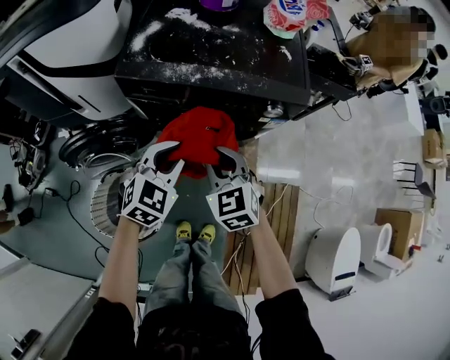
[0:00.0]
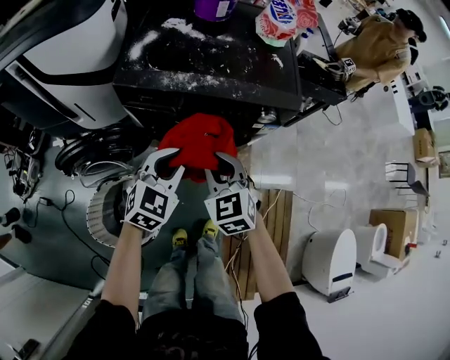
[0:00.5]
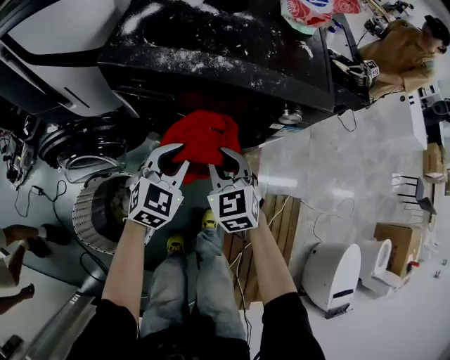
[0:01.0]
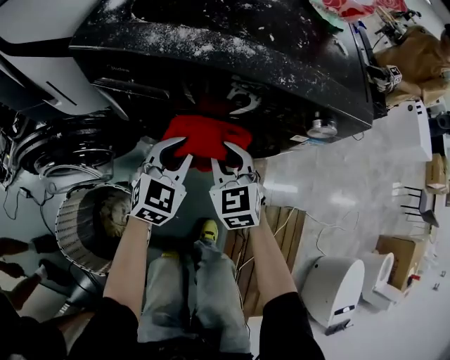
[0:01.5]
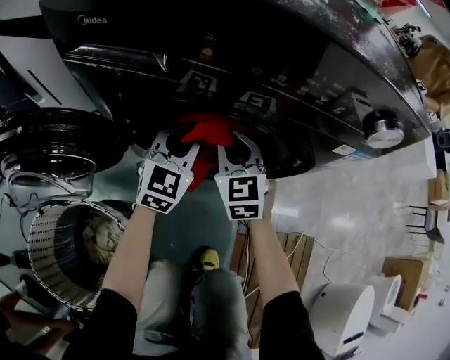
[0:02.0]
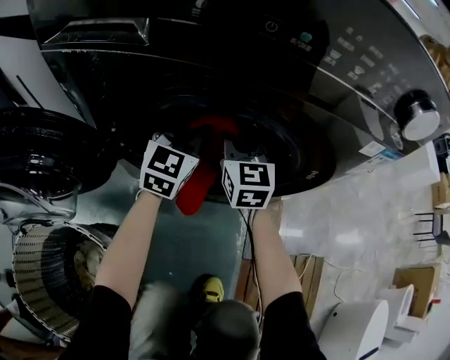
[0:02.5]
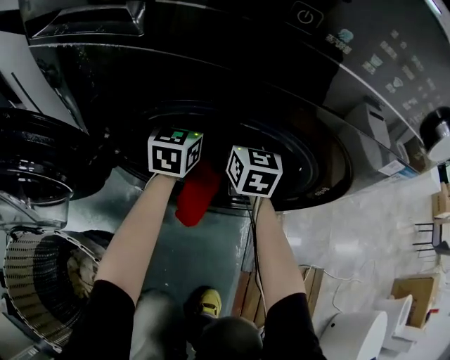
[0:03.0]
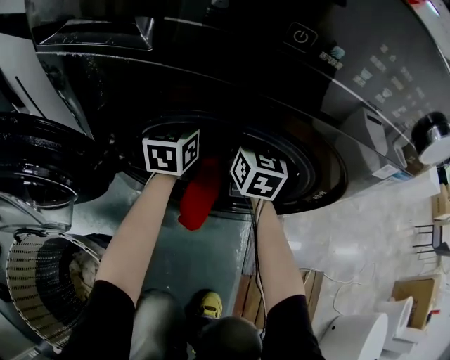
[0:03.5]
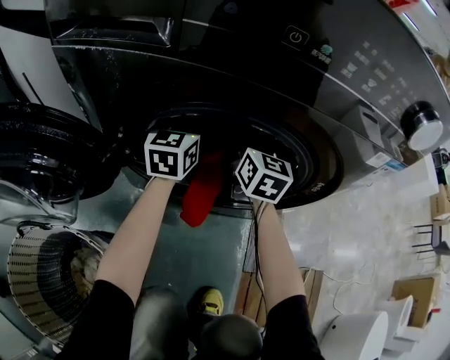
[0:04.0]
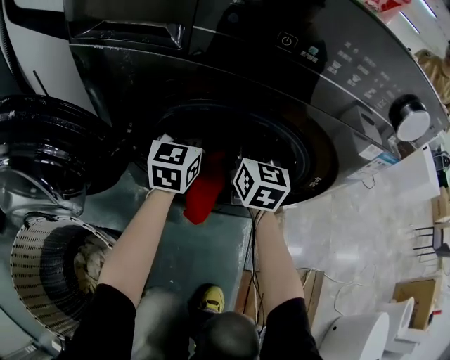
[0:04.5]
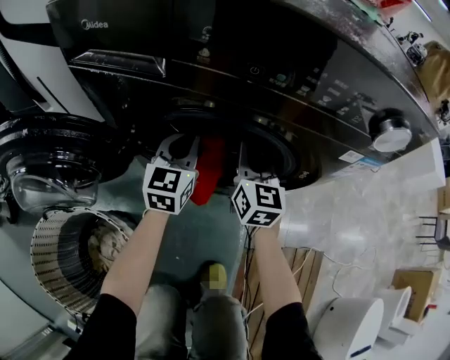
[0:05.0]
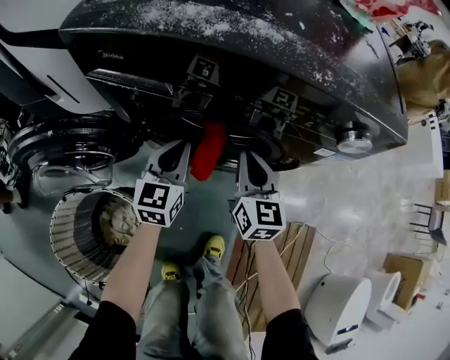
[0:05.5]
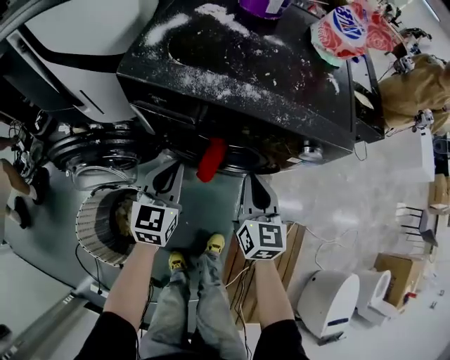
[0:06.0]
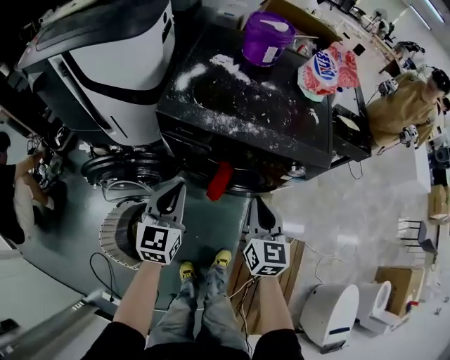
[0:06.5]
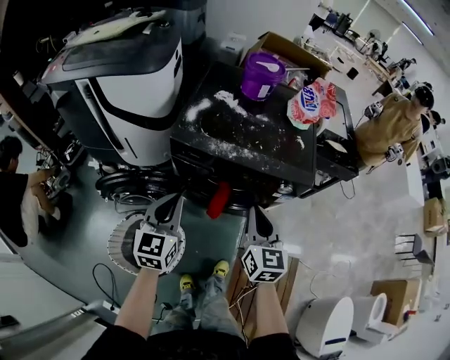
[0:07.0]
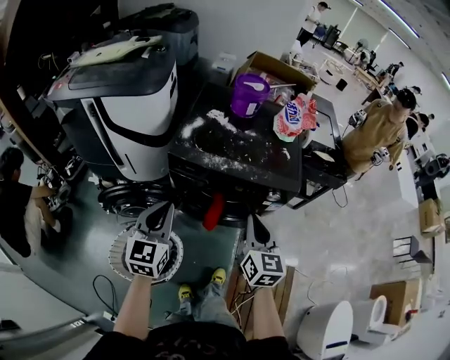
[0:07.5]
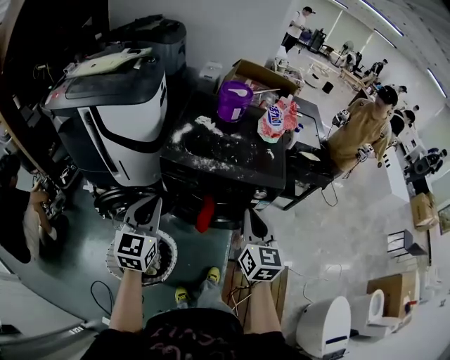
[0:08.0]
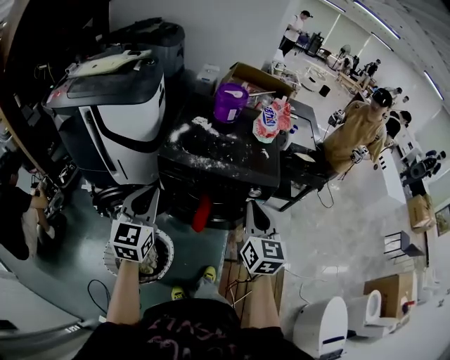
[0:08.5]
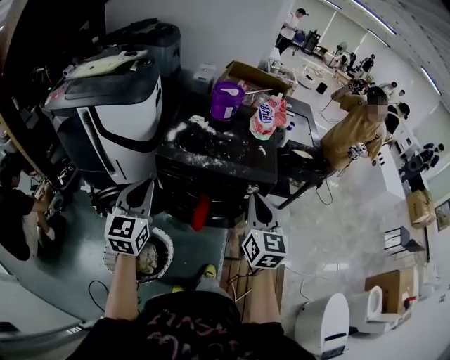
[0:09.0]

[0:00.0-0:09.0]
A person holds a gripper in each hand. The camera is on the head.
0:00.0 to 0:02.0: Both grippers travel together downward and forward, approximately 40 cm. The left gripper changes its angle by about 30 degrees.
0:02.0 to 0:04.5: Both grippers travel together forward, some 10 cm. The left gripper rotates some 20 degrees. The right gripper swivels some 20 degrees, and opens, then closes again.
0:04.5 to 0:07.0: Both grippers travel together upward and backward, roughly 50 cm.
0:07.0 to 0:09.0: Both grippers move upward, some 15 cm.

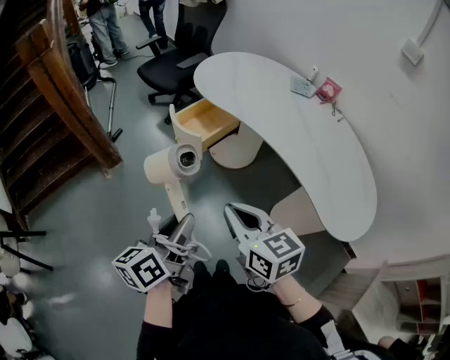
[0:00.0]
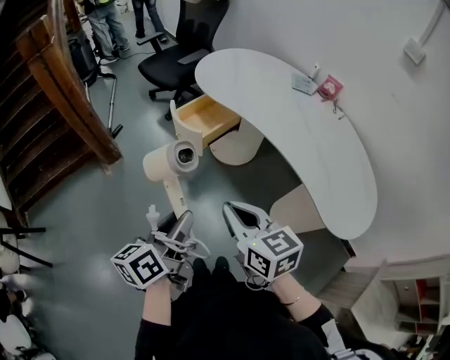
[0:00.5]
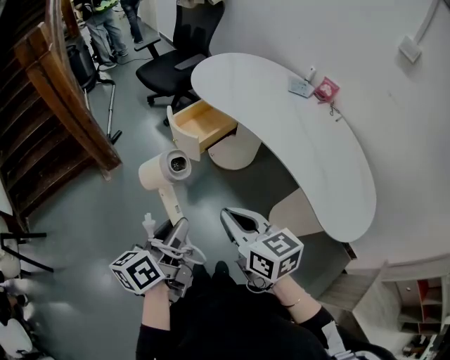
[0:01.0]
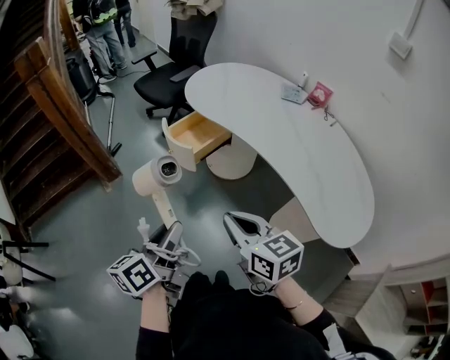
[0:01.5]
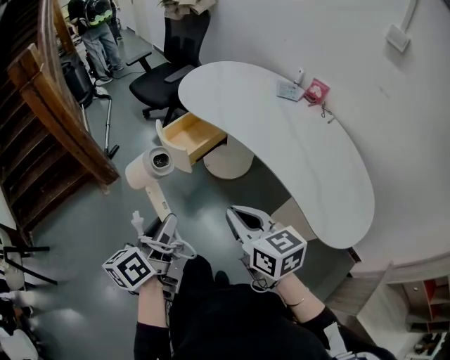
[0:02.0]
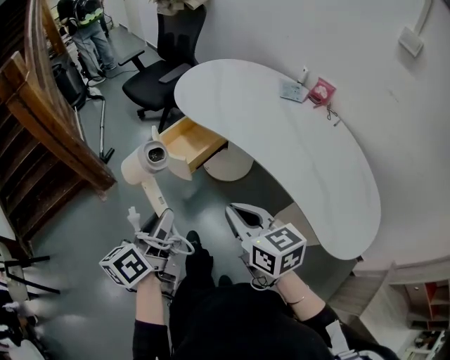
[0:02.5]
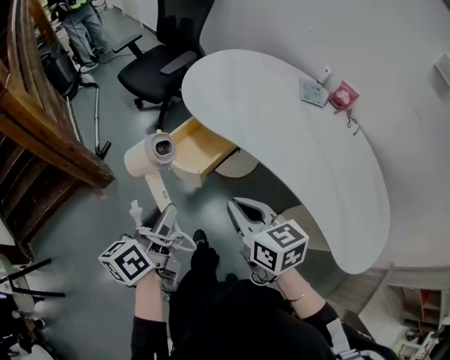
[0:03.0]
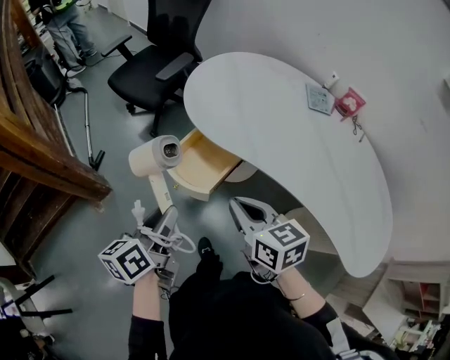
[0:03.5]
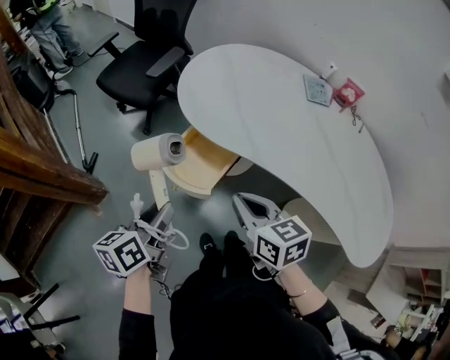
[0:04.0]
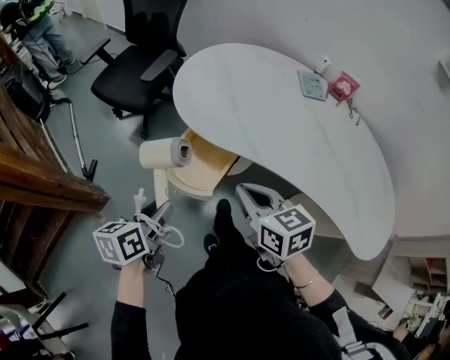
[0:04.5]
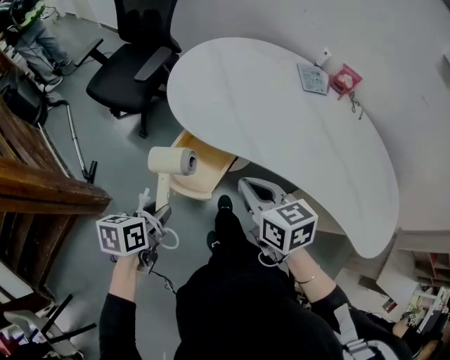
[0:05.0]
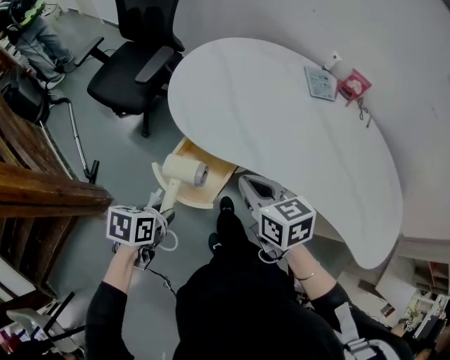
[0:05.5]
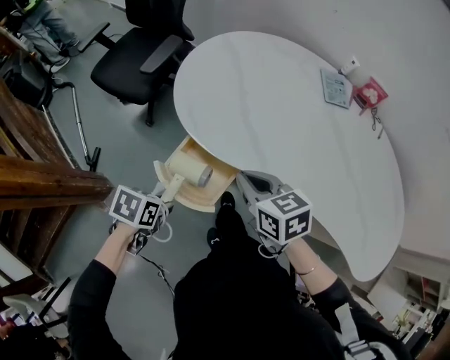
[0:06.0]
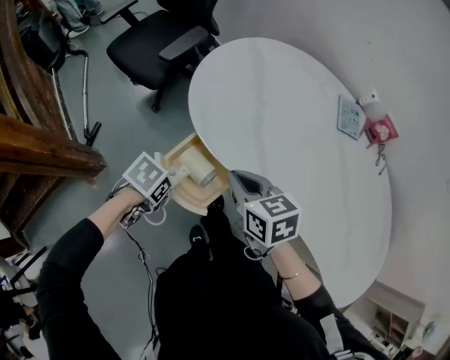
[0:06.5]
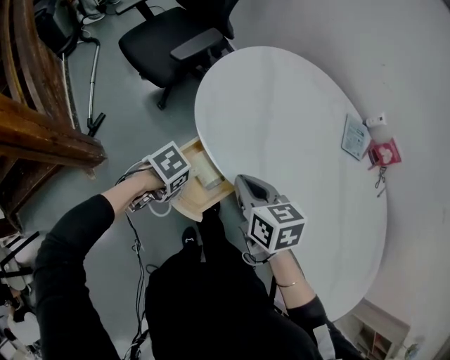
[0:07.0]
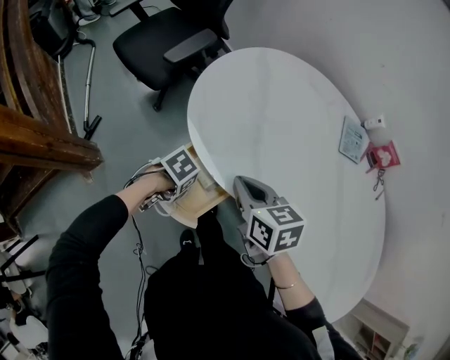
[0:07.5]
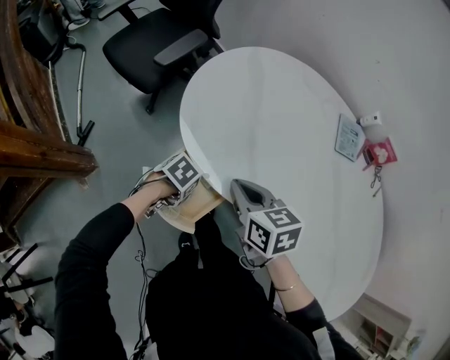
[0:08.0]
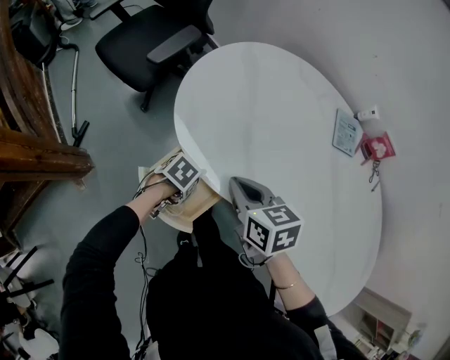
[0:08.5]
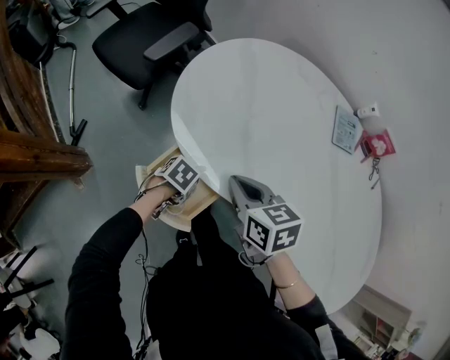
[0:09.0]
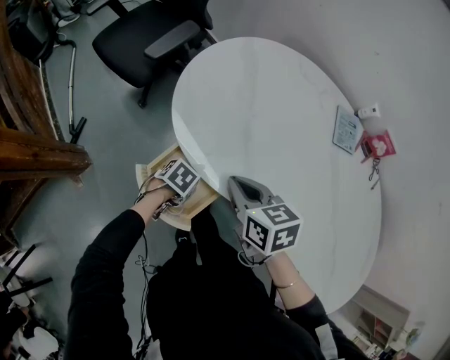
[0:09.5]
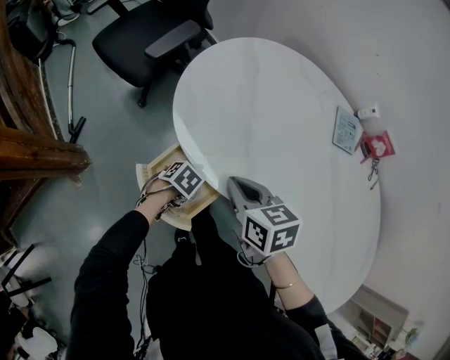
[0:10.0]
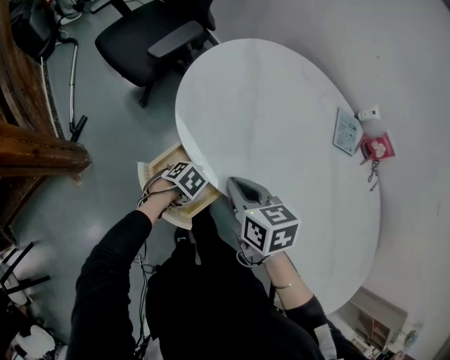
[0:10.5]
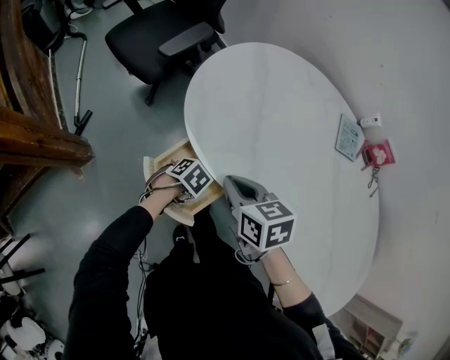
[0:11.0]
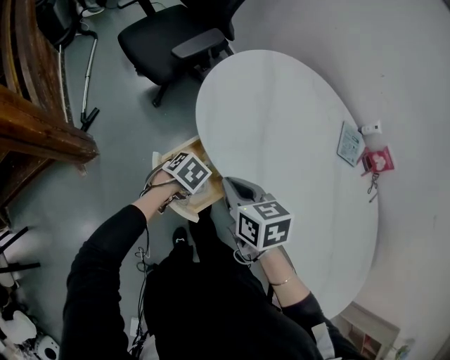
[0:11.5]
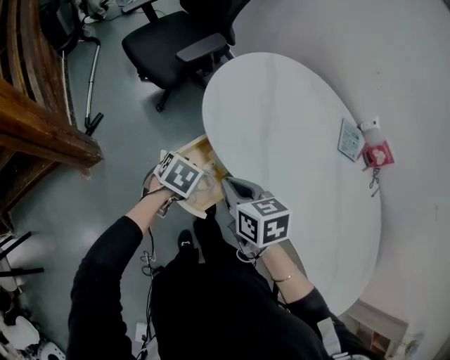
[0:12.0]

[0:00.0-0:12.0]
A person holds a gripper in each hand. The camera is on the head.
0:00.0 to 0:02.0: The right gripper goes roughly 5 cm to the right.
0:02.0 to 0:04.0: Both grippers travel together forward, approximately 30 cm. The left gripper rotates approximately 20 degrees.
0:04.0 to 0:06.0: The left gripper heads downward and forward, covering about 15 cm, and points its fingers about 40 degrees further downward. Meanwhile the right gripper goes some 15 cm forward.
0:06.0 to 0:08.0: The right gripper shifts by some 5 cm; the left gripper changes place by about 15 cm.
0:08.0 to 0:10.0: The left gripper heads downward, covering about 5 cm.
0:10.0 to 0:12.0: The left gripper goes roughly 10 cm upward, and changes its angle by some 30 degrees, while the right gripper moves about 10 cm.

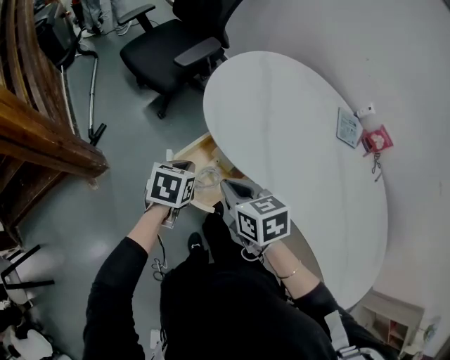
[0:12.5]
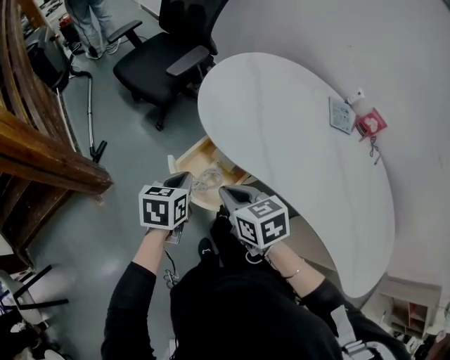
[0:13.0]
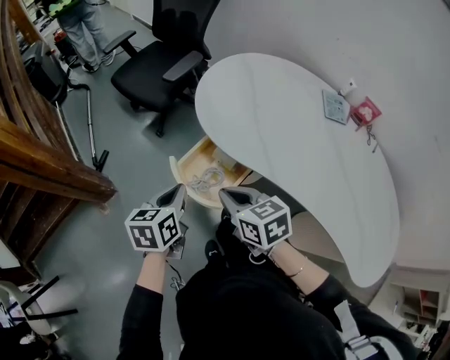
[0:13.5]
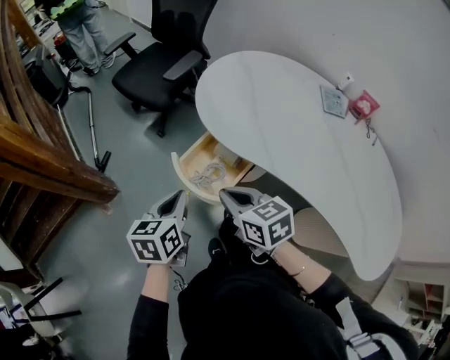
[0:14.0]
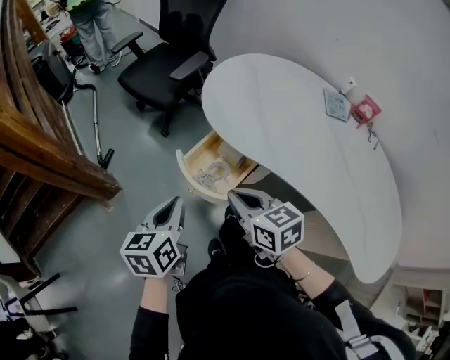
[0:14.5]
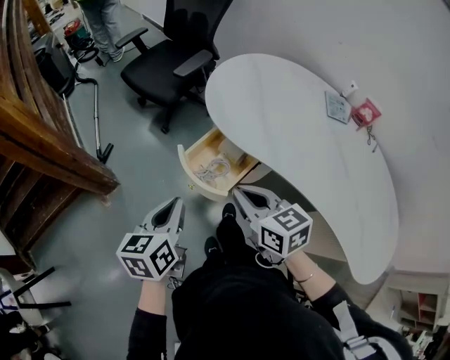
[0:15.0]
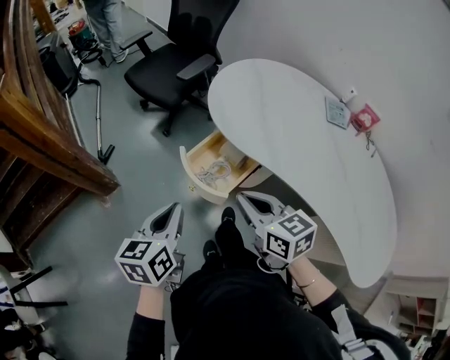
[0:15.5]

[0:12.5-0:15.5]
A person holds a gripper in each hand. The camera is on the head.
0:12.5 to 0:14.0: The left gripper shifts about 15 cm backward, upward and to the left, and turns by approximately 20 degrees; the right gripper heads backward, covering some 5 cm.
0:14.0 to 0:15.5: The right gripper moves some 5 cm; the left gripper moves backward, approximately 5 cm.

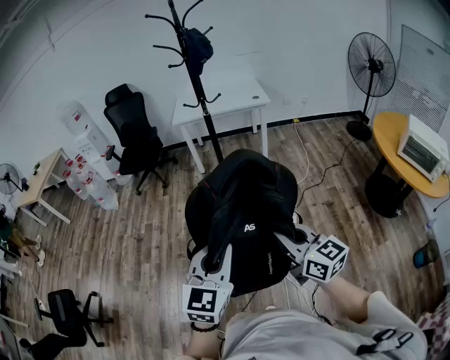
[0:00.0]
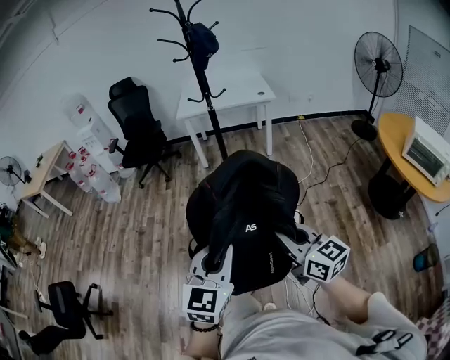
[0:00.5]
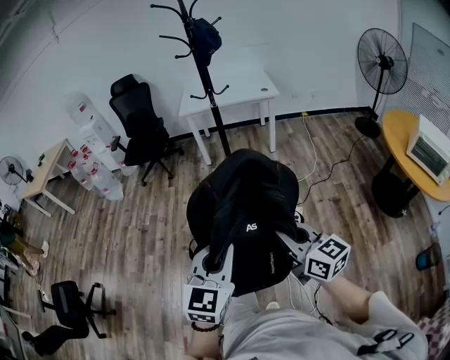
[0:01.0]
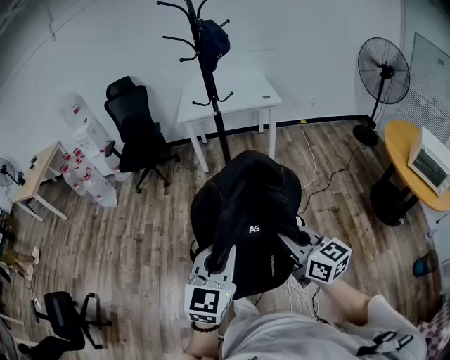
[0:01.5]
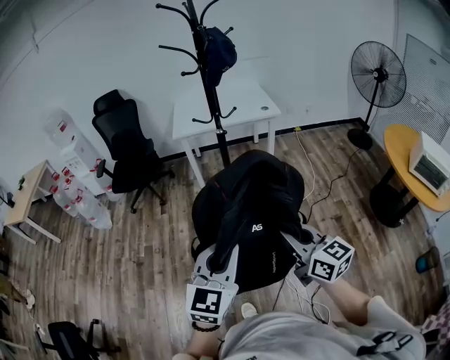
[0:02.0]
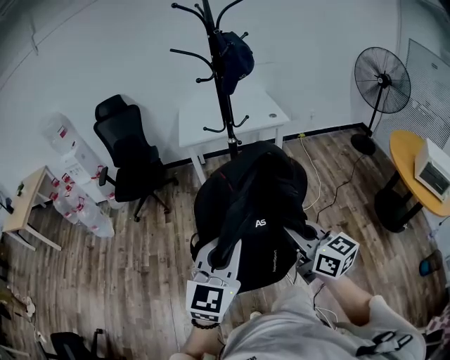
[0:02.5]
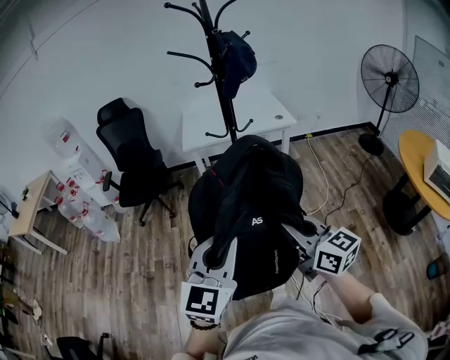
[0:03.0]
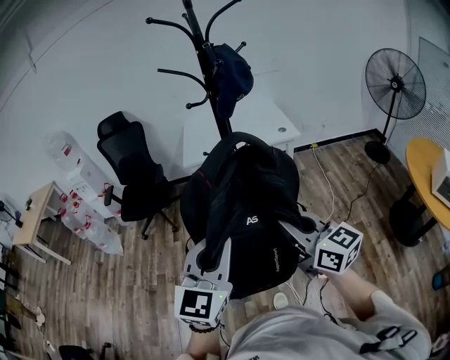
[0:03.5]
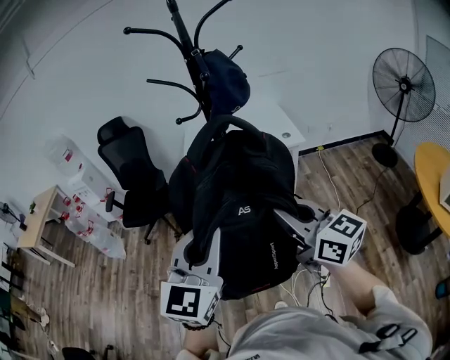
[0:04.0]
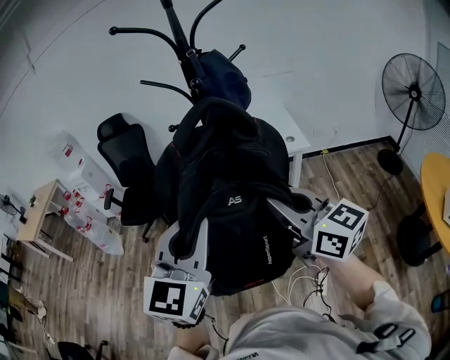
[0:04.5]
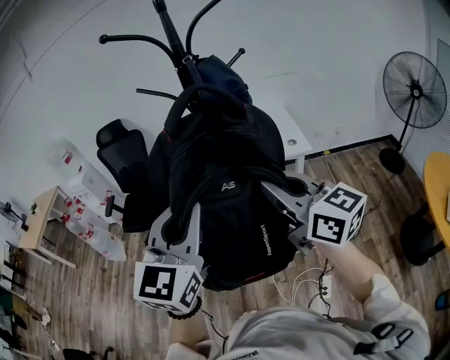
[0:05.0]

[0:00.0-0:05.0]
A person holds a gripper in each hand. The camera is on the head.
0:00.0 to 0:02.5: Both grippers travel together forward and to the left, about 35 cm.
0:02.5 to 0:05.0: The two grippers go approximately 35 cm forward and upward.
